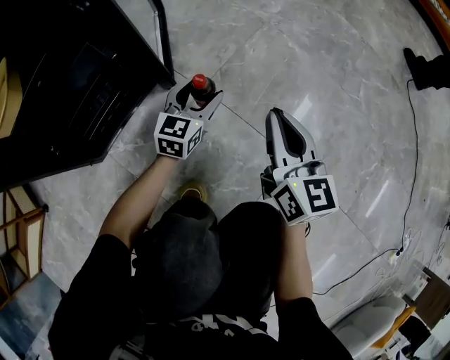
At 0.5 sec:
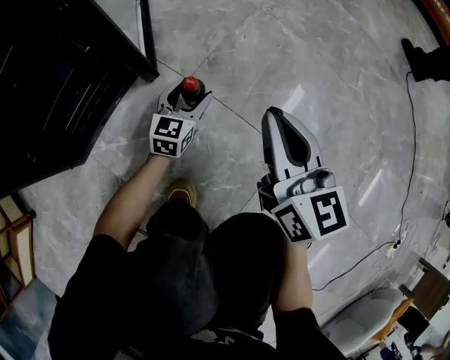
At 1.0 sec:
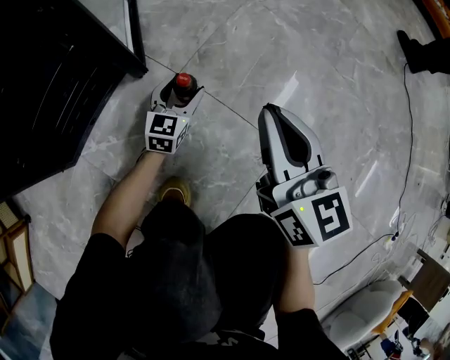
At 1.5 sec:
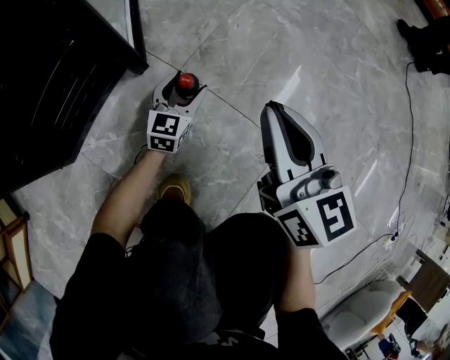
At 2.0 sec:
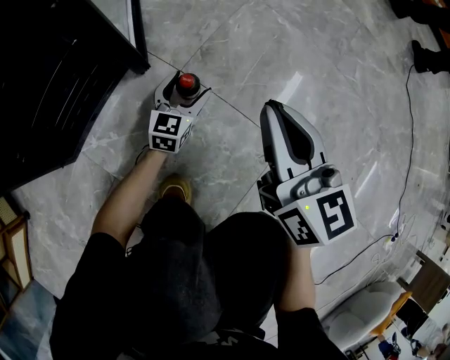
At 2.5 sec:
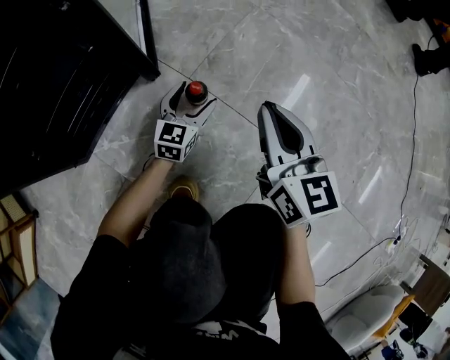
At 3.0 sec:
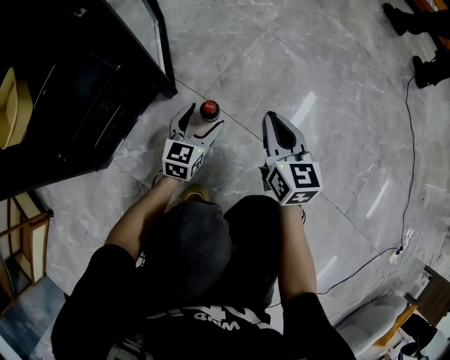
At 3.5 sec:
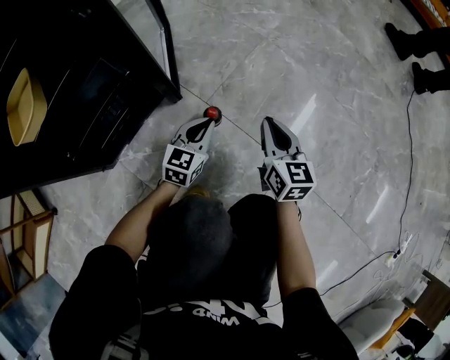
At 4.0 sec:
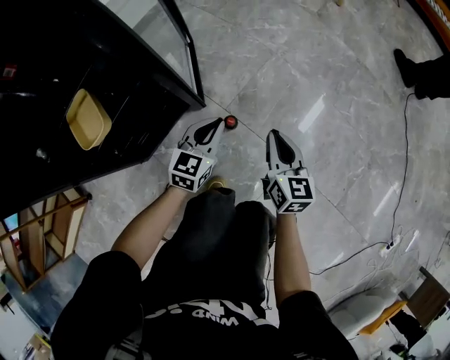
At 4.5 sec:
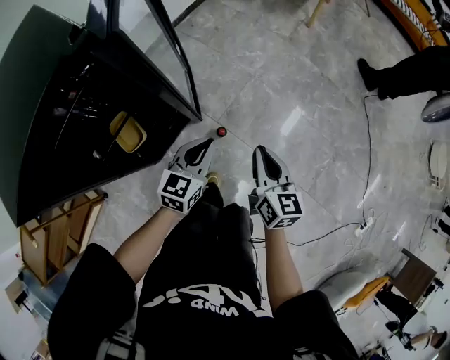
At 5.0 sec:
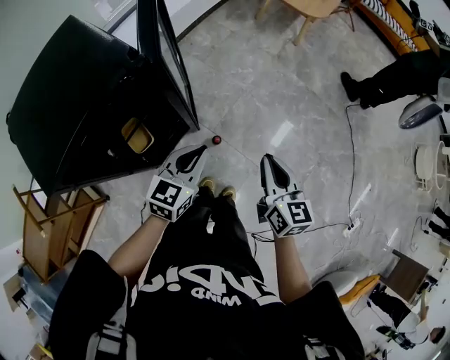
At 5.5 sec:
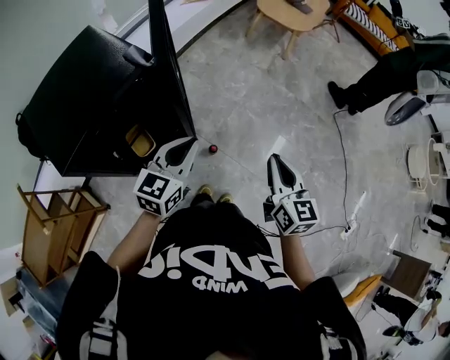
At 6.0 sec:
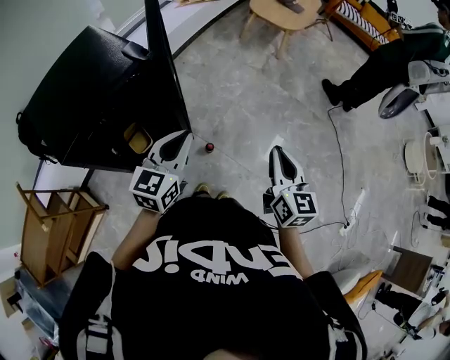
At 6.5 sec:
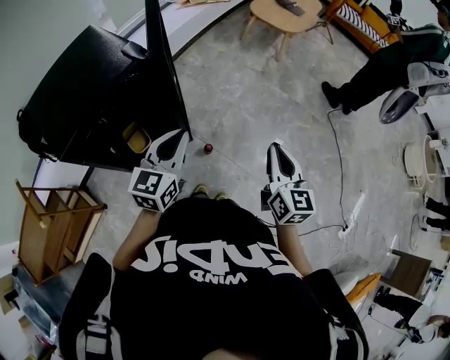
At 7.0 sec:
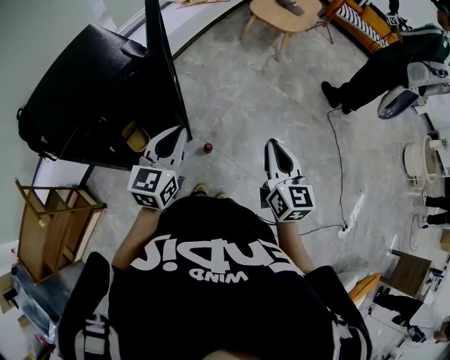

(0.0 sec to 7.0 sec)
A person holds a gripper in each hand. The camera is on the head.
0.0 sec - 2.0 sec: The left gripper travels downward by some 10 cm.
2.0 sec - 3.5 sec: The right gripper is displaced downward by some 5 cm. The left gripper travels upward by approximately 10 cm, and closes up.
3.5 sec - 5.0 sec: Both grippers move upward, some 70 cm.
5.0 sec - 7.0 sec: The right gripper goes roughly 15 cm upward, to the right and backward. The left gripper goes roughly 15 cm upward and backward.

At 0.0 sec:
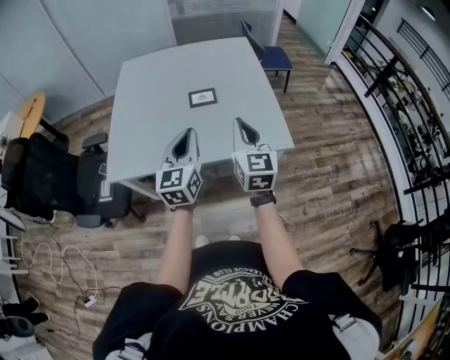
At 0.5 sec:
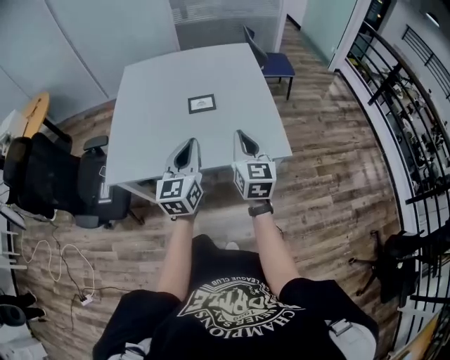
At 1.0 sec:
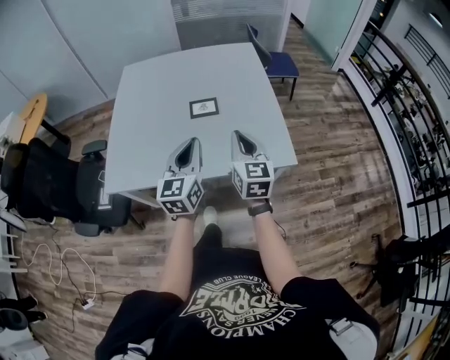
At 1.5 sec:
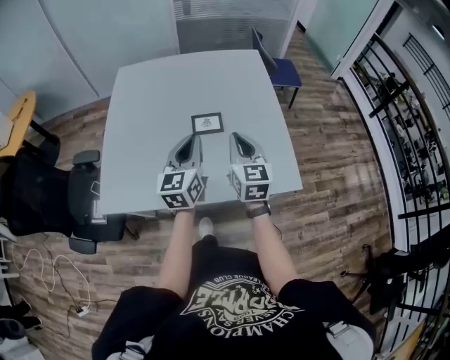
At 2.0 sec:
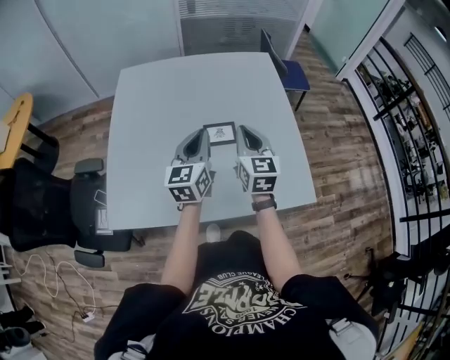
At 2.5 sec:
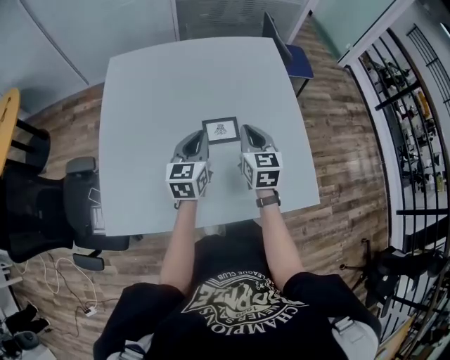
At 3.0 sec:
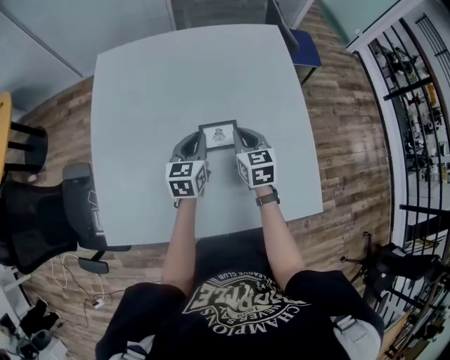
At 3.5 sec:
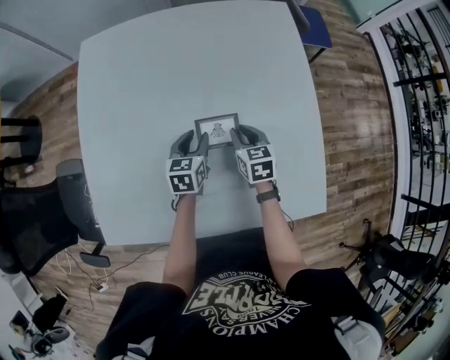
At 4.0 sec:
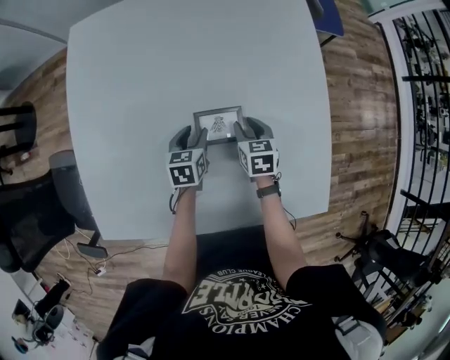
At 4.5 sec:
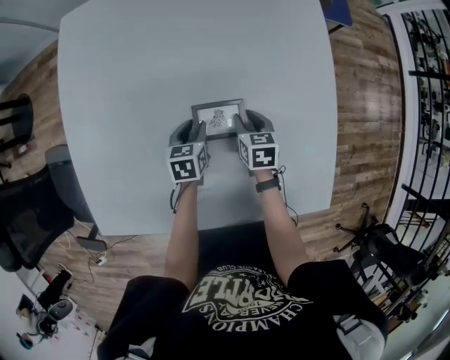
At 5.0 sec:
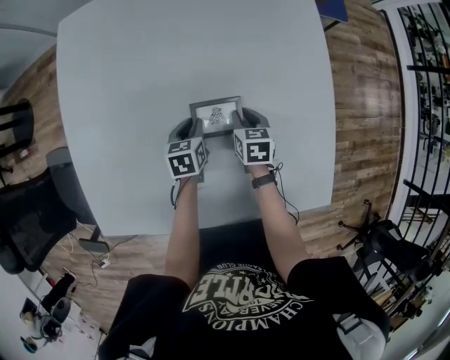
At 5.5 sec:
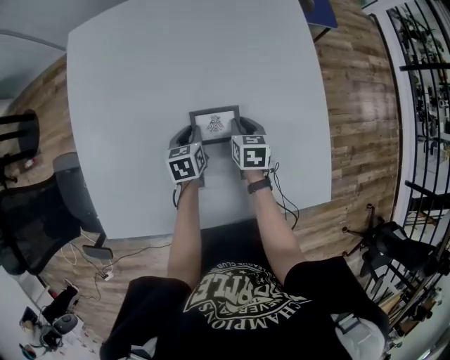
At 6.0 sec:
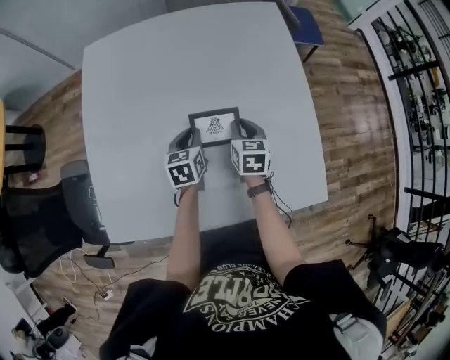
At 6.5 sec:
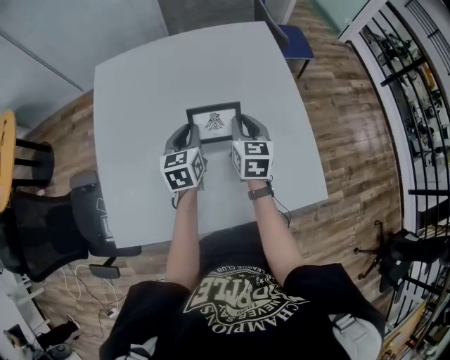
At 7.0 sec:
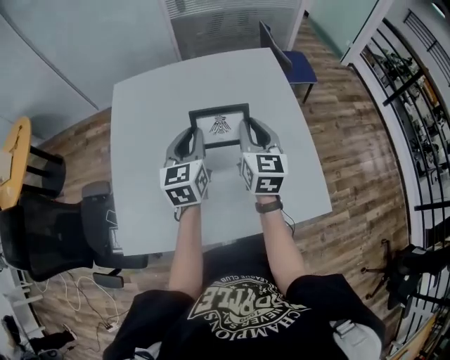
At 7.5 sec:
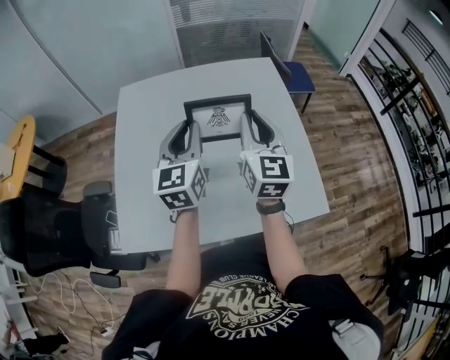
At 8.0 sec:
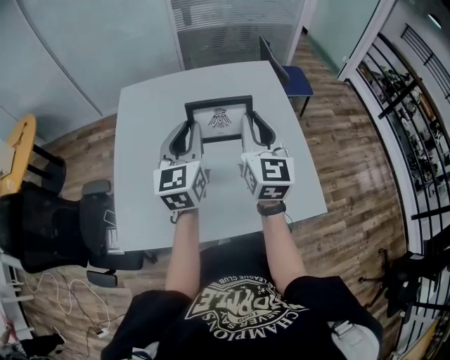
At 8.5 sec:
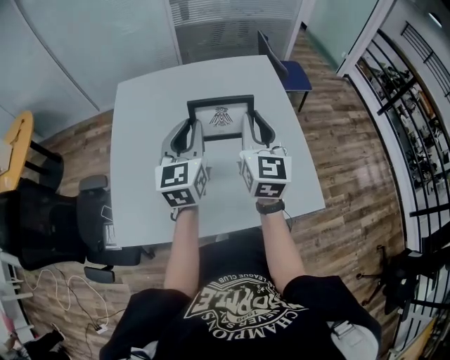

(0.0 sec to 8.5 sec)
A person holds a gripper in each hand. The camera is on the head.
0.0 sec - 2.0 sec: The two grippers go approximately 30 cm forward.
2.0 sec - 4.0 sec: The two grippers go about 40 cm downward and forward. The left gripper points its fingers approximately 40 degrees further downward, and opens up, while the right gripper points its fingers some 40 degrees further downward, and opens.
4.0 sec - 6.5 sec: The grippers both shift upward by roughly 20 cm. The left gripper turns by approximately 20 degrees, and closes its fingers, while the right gripper turns by approximately 30 degrees.
6.5 sec - 8.5 sec: The two grippers go about 20 cm upward and backward. The right gripper turns by approximately 30 degrees. The left gripper changes its angle by approximately 20 degrees.

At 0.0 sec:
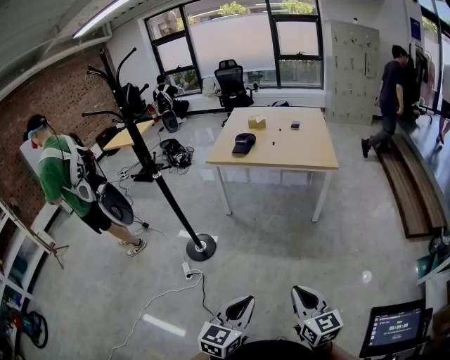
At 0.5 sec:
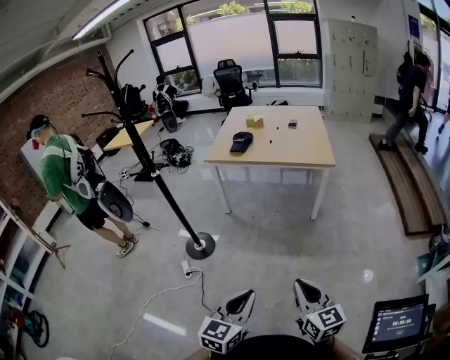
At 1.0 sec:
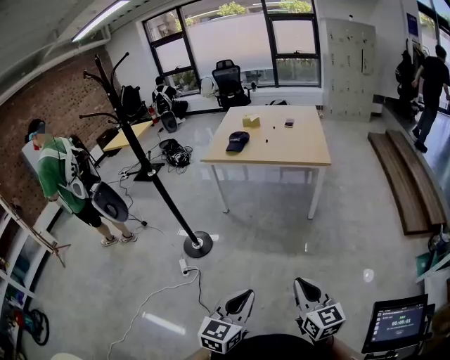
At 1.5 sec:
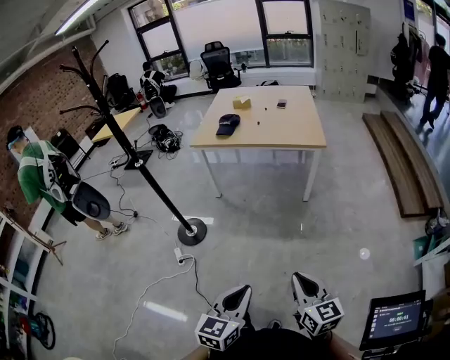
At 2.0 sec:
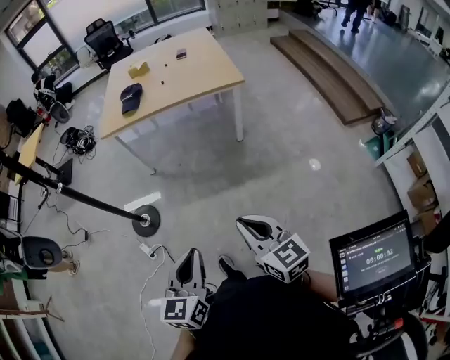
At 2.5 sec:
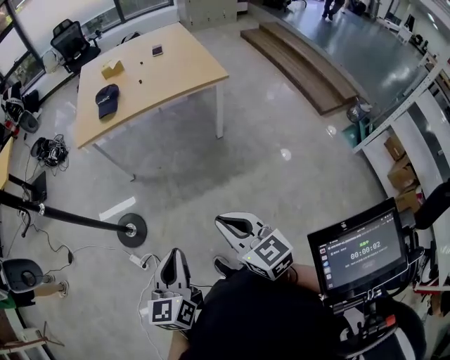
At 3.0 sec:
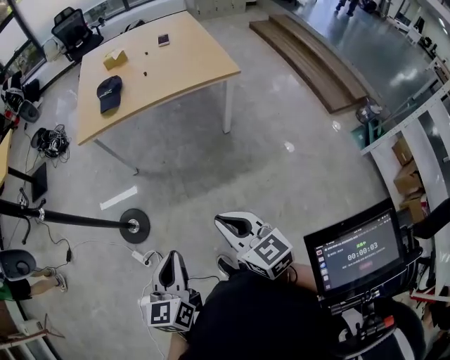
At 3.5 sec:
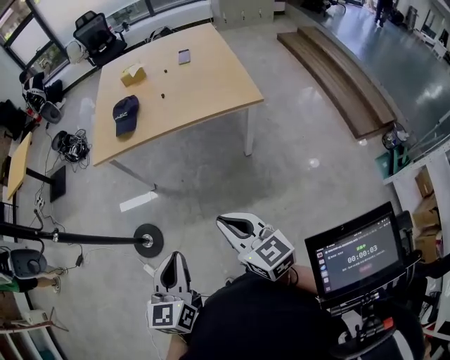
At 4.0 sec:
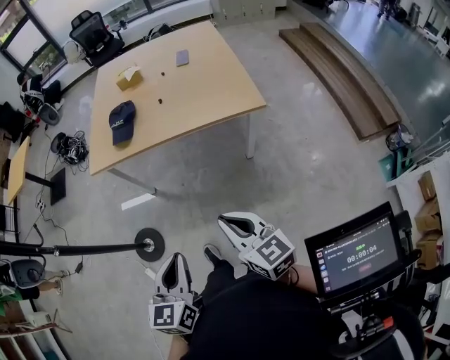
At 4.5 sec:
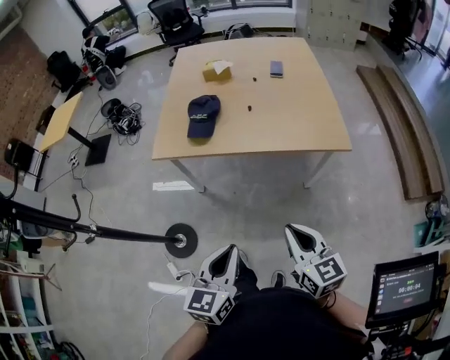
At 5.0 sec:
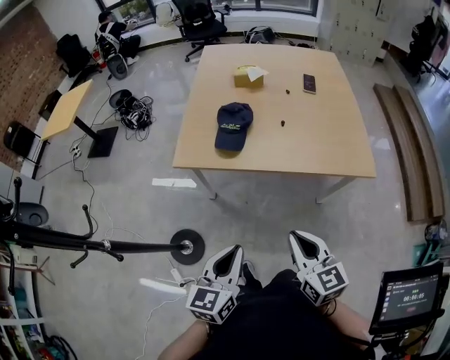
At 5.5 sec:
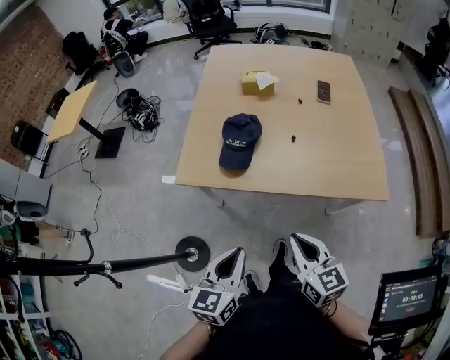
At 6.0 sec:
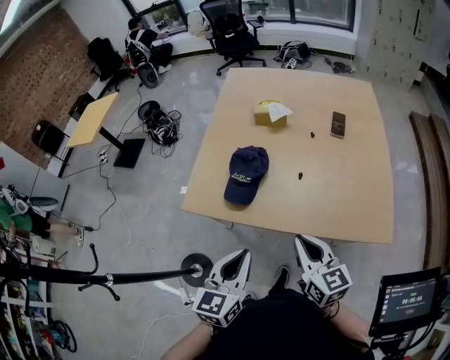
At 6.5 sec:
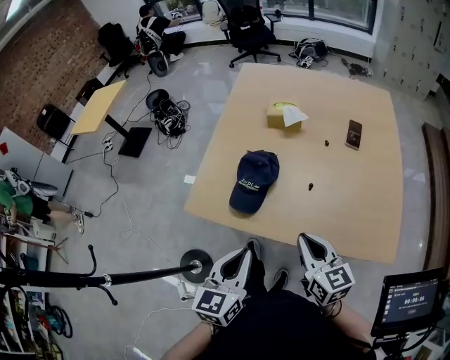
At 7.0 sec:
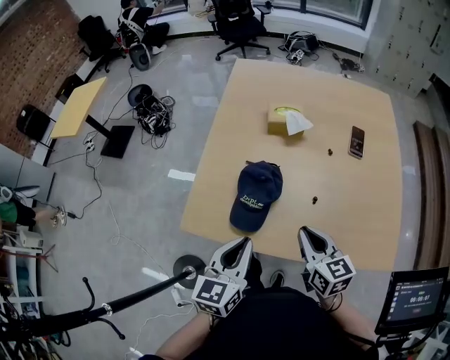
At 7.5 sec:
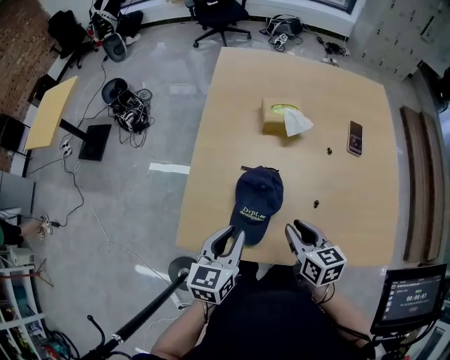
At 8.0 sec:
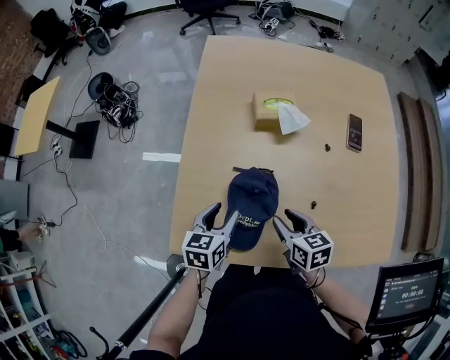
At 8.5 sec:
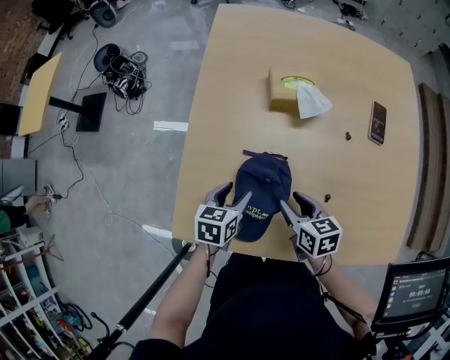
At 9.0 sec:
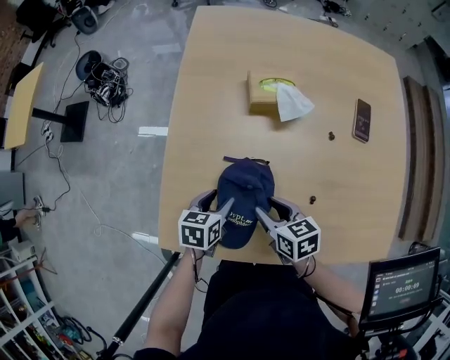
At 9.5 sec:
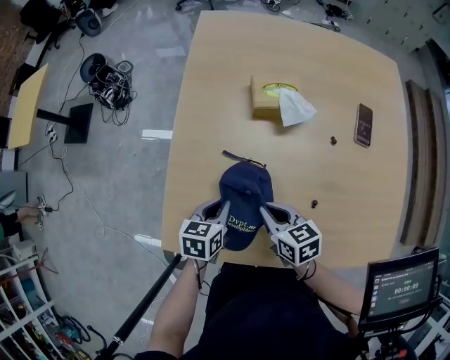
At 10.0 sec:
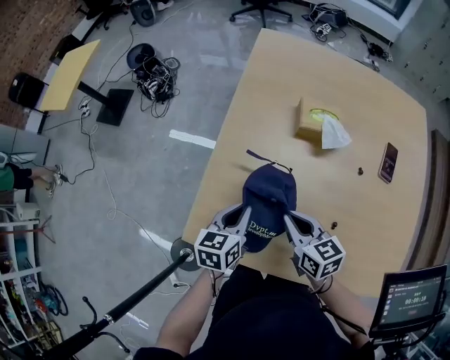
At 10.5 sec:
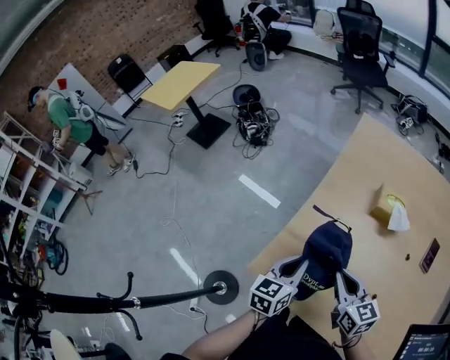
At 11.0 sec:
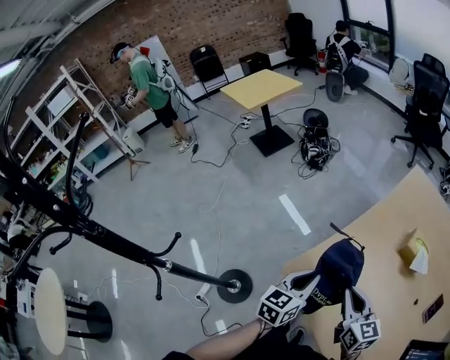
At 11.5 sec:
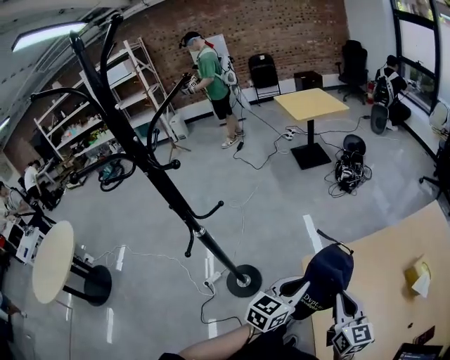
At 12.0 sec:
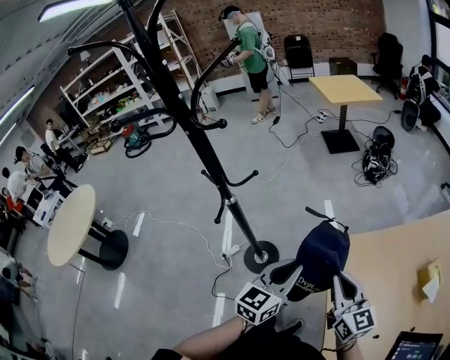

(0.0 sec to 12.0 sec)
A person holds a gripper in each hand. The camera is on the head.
0.0 sec - 2.0 sec: The two grippers go roughly 10 cm forward.
2.0 sec - 4.0 sec: Both grippers move forward, about 30 cm.
4.0 sec - 6.0 sec: The two grippers travel together, forward, some 40 cm.
6.0 sec - 8.0 sec: The grippers both shift forward and downward by approximately 35 cm. The right gripper rotates approximately 30 degrees, and opens. The left gripper changes its angle by roughly 20 degrees, and opens.
8.0 sec - 10.0 sec: The right gripper moves to the left, approximately 5 cm, and closes its fingers, while the left gripper goes downward and returns, some 5 cm each way, and closes its fingers.
10.0 sec - 12.0 sec: The left gripper moves approximately 40 cm, and rotates about 60 degrees. The right gripper shifts by approximately 35 cm, and changes its angle by about 60 degrees.
